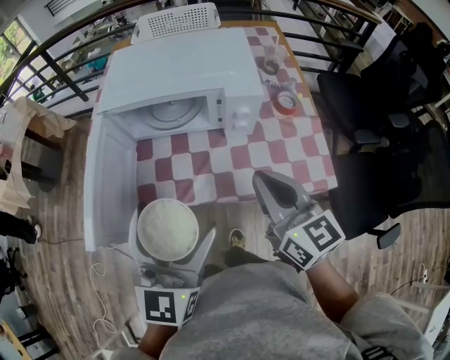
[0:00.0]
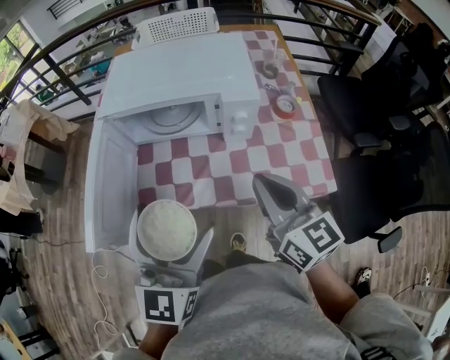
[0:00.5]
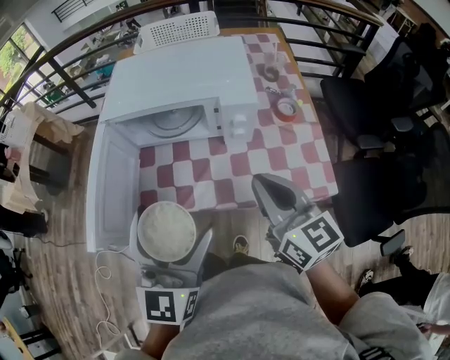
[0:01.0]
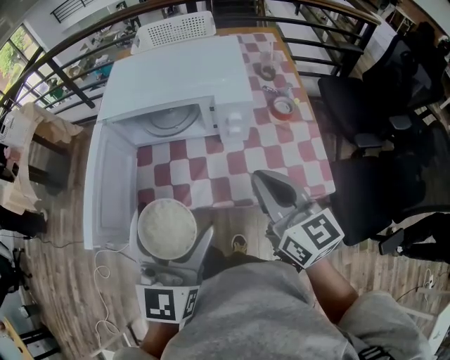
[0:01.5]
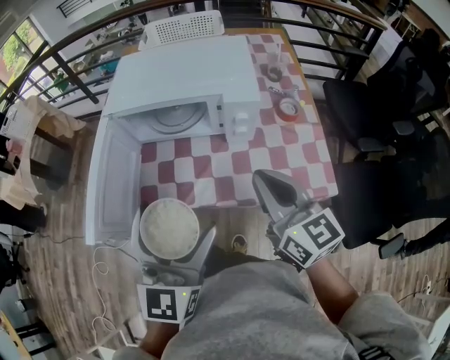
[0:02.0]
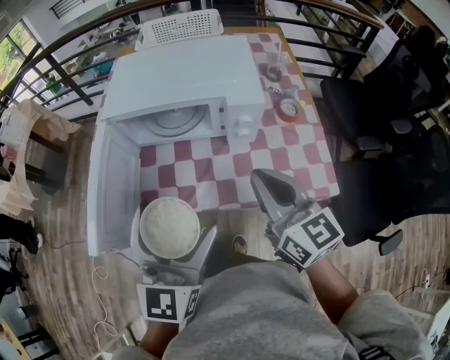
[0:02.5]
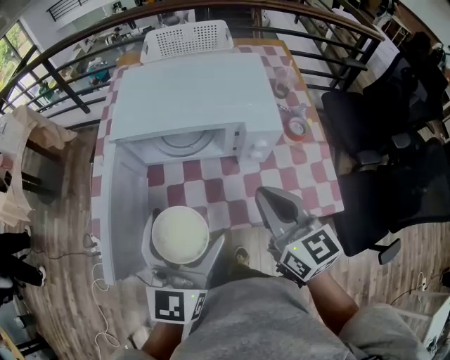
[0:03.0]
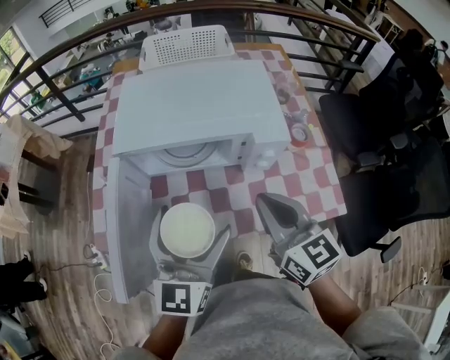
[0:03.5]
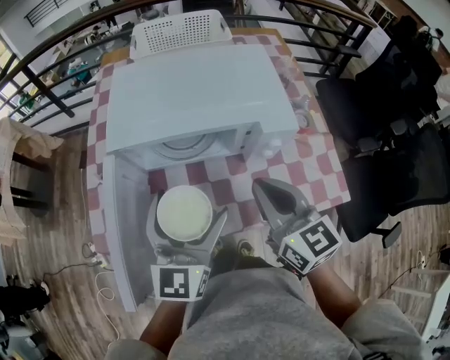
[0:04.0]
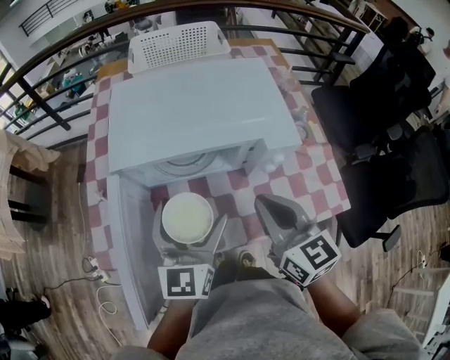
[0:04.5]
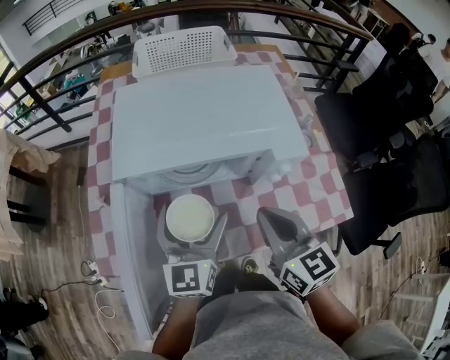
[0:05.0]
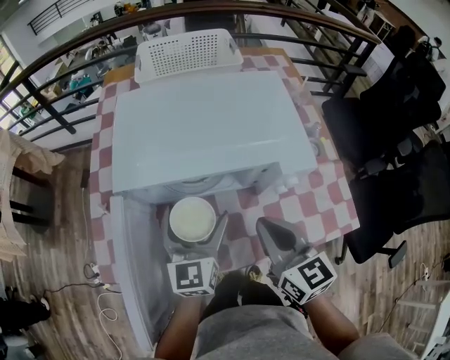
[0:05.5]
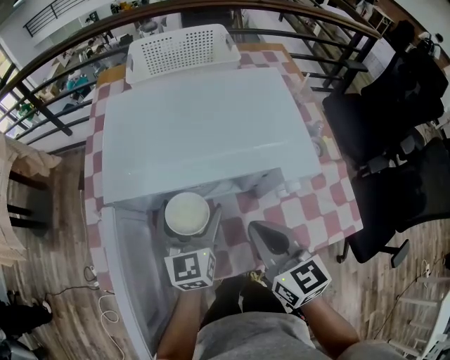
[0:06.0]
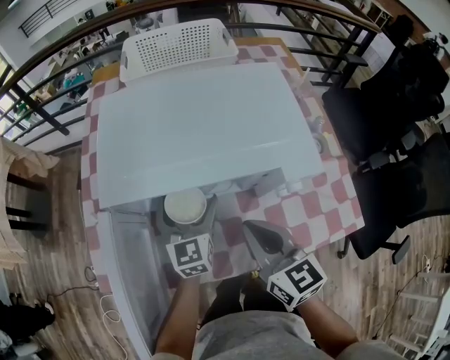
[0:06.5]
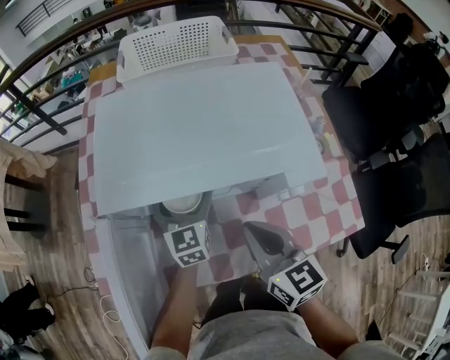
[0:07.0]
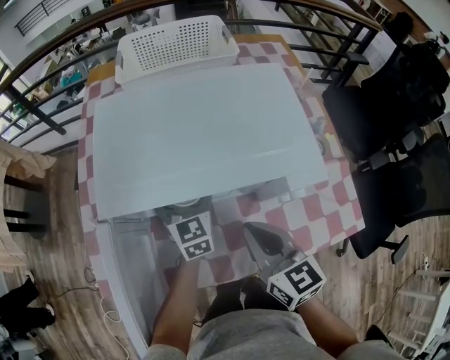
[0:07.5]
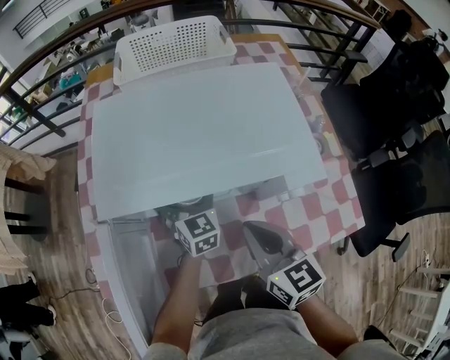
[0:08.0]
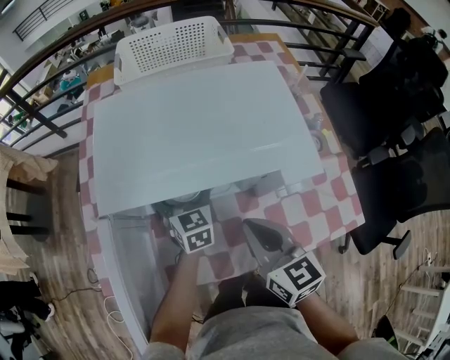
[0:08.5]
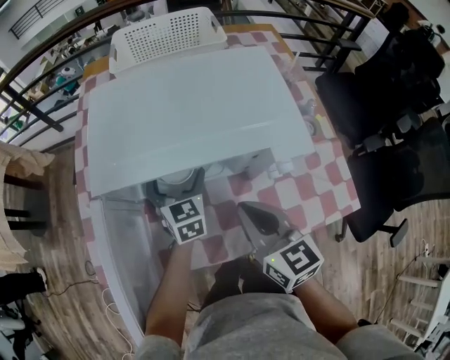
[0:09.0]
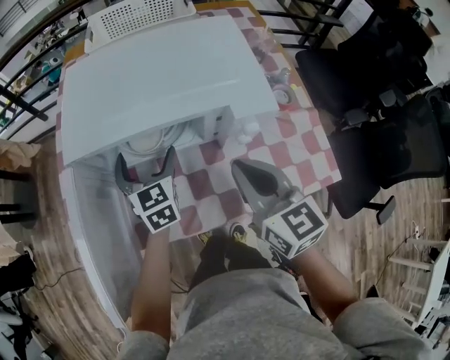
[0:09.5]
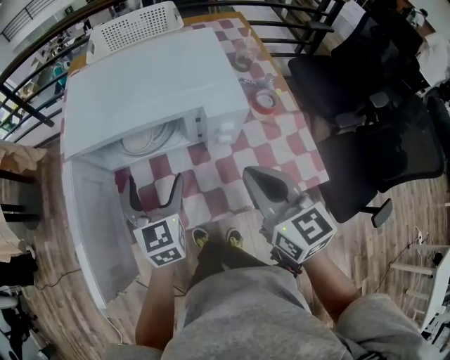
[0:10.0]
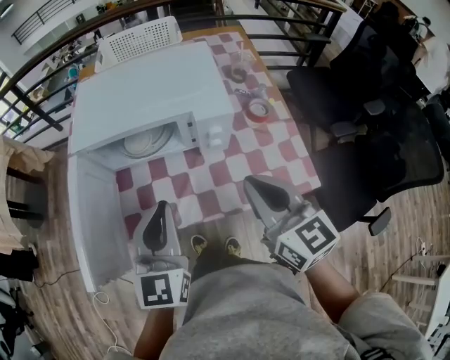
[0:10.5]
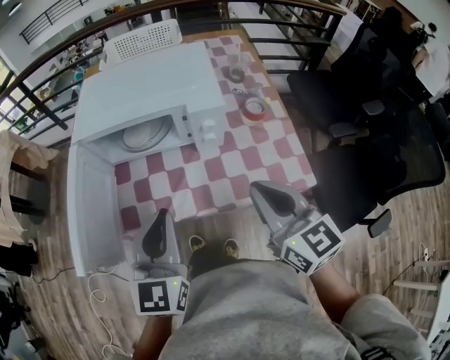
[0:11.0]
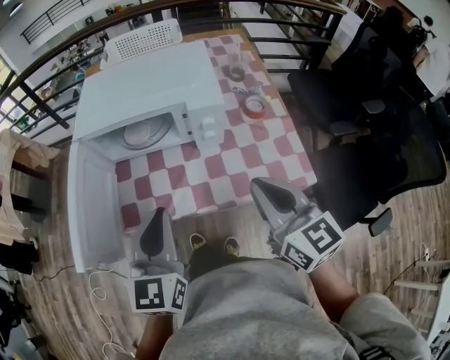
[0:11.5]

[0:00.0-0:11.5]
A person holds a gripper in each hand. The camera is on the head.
0:00.0 to 0:02.0: The grippers make only small movements.
0:02.0 to 0:04.0: The left gripper travels forward by roughly 15 cm, while the right gripper goes approximately 15 cm forward and to the left.
0:04.0 to 0:06.0: The left gripper heads forward and downward, covering approximately 20 cm; the right gripper moves downward, roughly 5 cm.
0:06.0 to 0:07.5: The left gripper goes about 10 cm forward and downward.
0:07.5 to 0:09.5: The right gripper is displaced to the right by roughly 5 cm, while the left gripper heads backward, covering roughly 5 cm.
0:09.5 to 0:11.5: The left gripper goes roughly 30 cm backward and upward, and closes its fingers, while the right gripper heads backward, to the right and upward, covering some 20 cm.

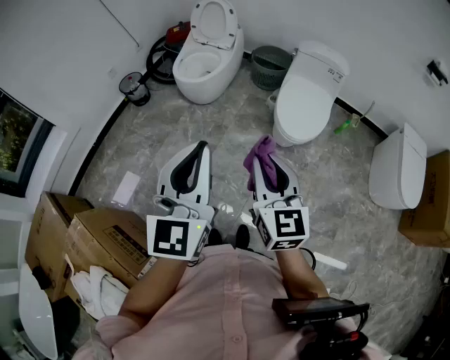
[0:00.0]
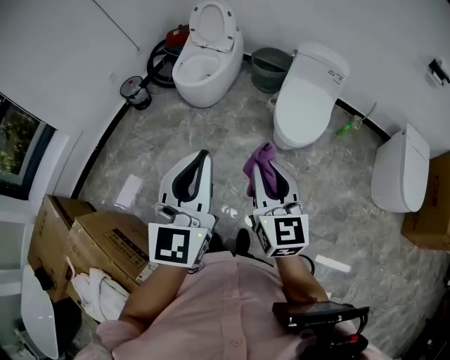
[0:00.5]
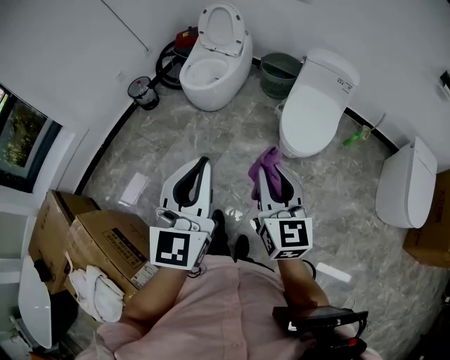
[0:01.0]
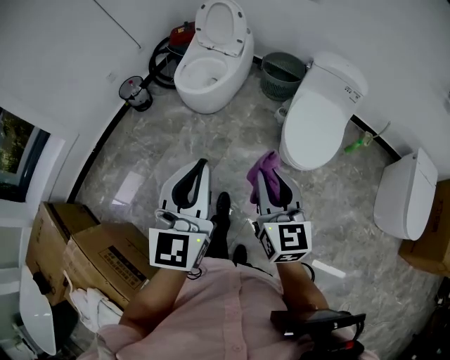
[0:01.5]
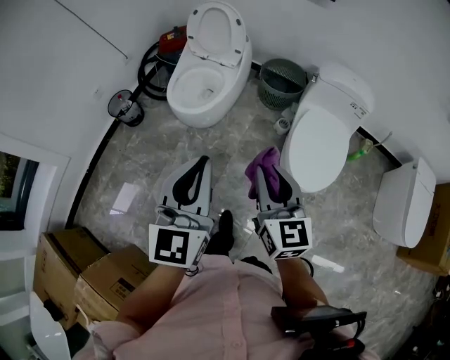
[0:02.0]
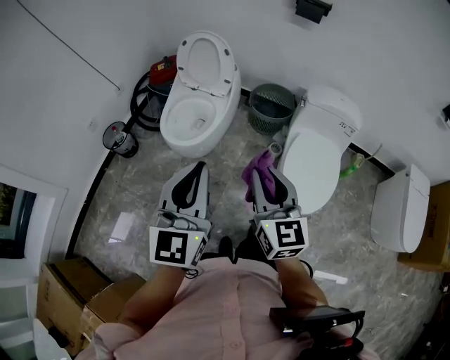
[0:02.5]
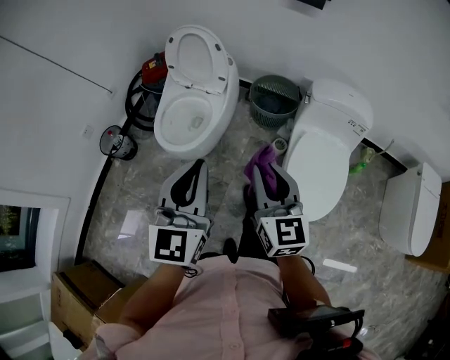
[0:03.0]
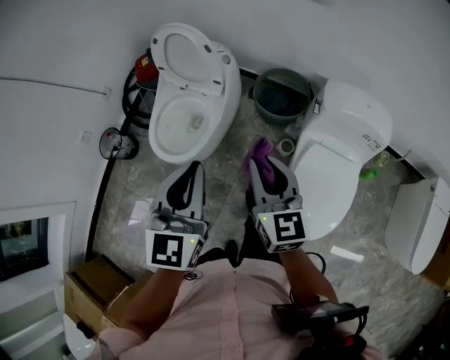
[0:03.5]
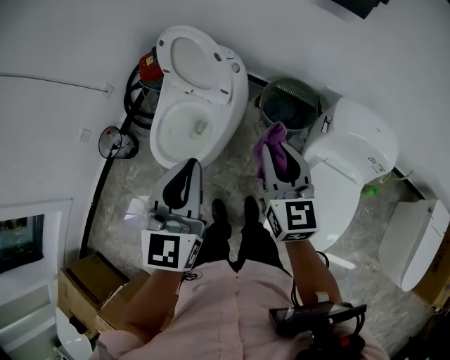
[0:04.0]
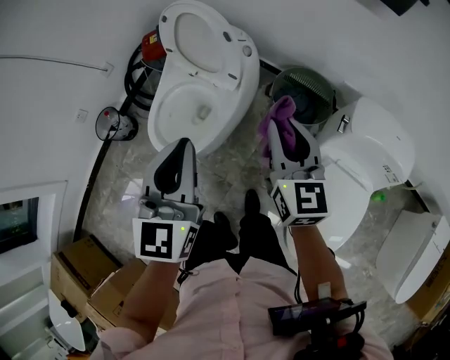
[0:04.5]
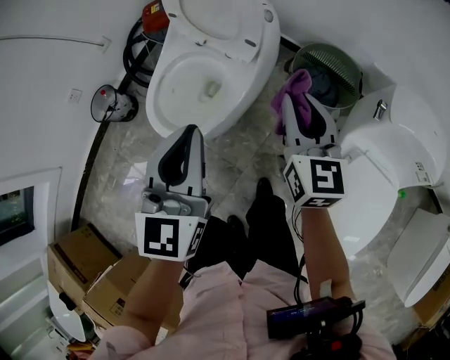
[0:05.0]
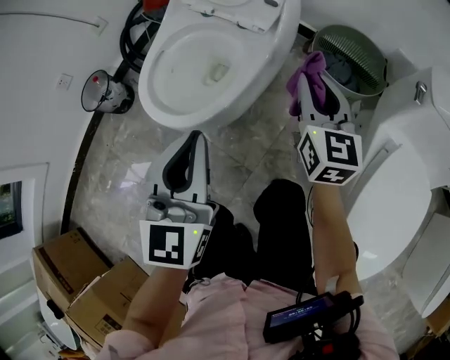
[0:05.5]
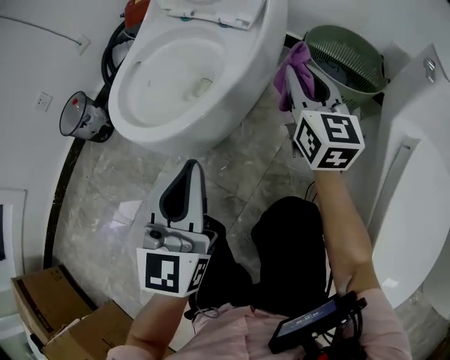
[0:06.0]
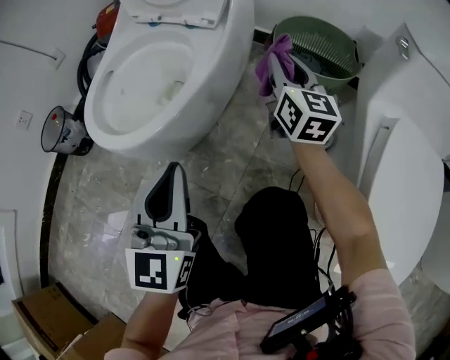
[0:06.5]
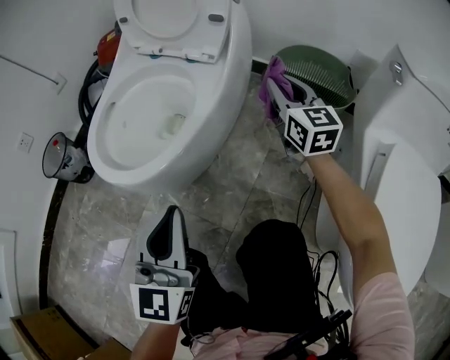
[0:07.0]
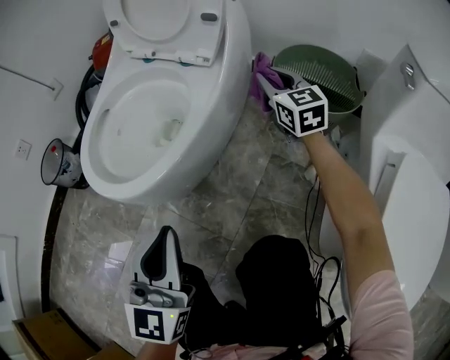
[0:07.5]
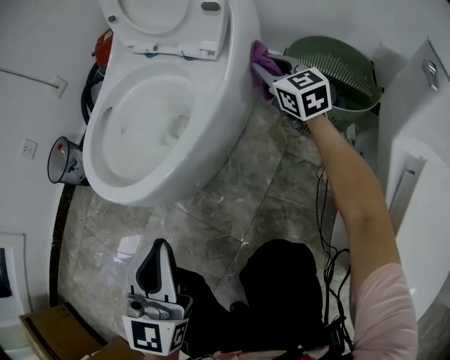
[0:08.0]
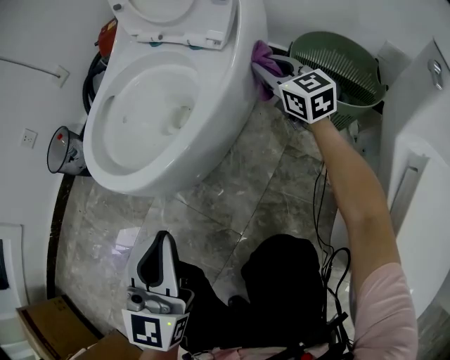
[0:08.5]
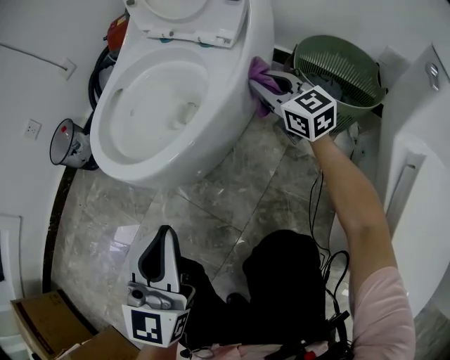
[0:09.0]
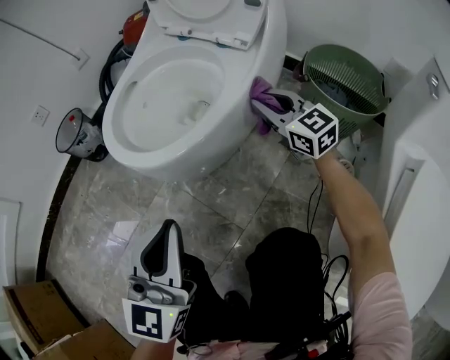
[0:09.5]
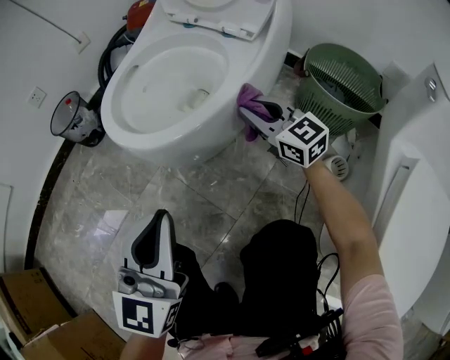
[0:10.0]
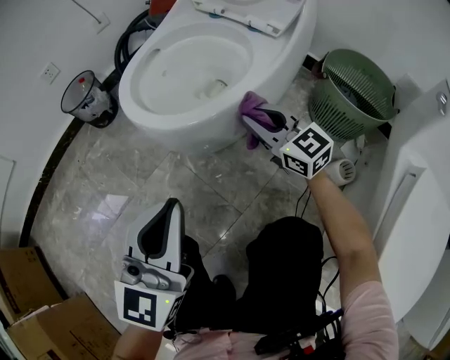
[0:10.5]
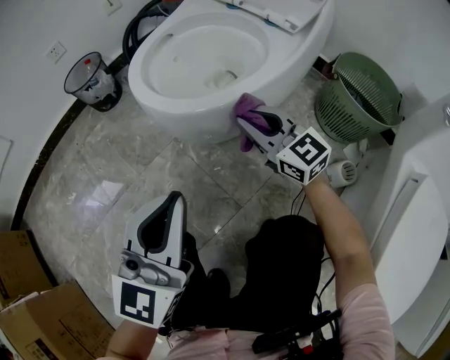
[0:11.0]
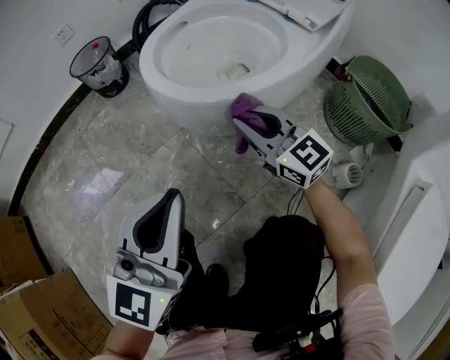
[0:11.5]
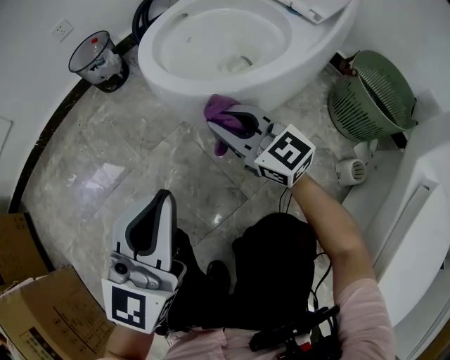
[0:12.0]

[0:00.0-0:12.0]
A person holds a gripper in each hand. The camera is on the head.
0:00.0 to 0:02.0: Both grippers move forward, roughly 35 cm.
0:02.0 to 0:04.0: The two grippers travel together, forward, about 40 cm.
0:04.0 to 0:06.0: The grippers both shift downward by approximately 40 cm.
0:06.0 to 0:08.0: The right gripper shifts roughly 20 cm forward and downward.
0:08.0 to 0:10.0: The left gripper ends up some 5 cm from where it was. Meanwhile the right gripper is displaced to the left and backward by approximately 20 cm, and rotates roughly 20 degrees.
0:10.0 to 0:12.0: The right gripper travels to the left by about 20 cm, and changes its angle by approximately 20 degrees; the left gripper moves to the left, approximately 5 cm.

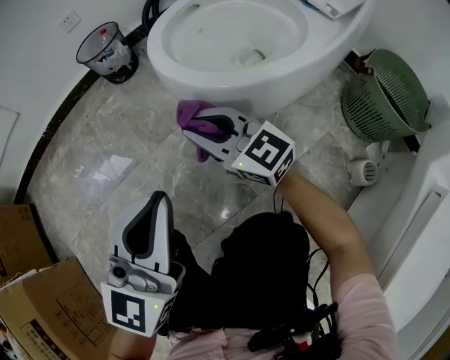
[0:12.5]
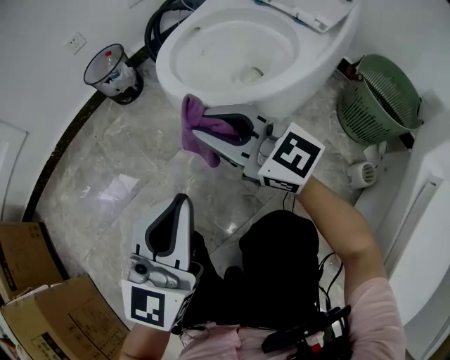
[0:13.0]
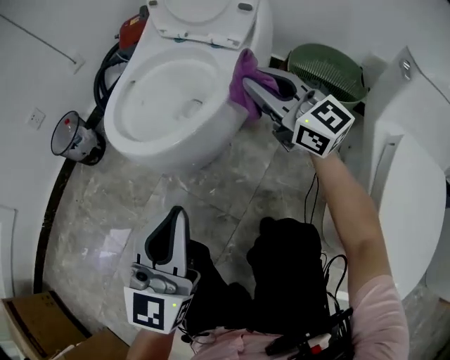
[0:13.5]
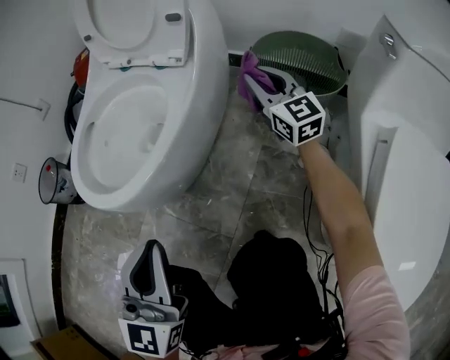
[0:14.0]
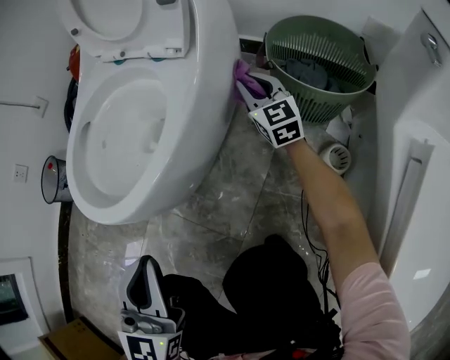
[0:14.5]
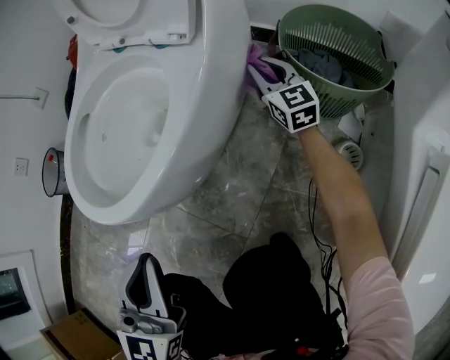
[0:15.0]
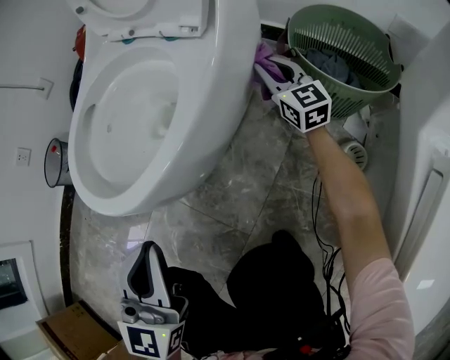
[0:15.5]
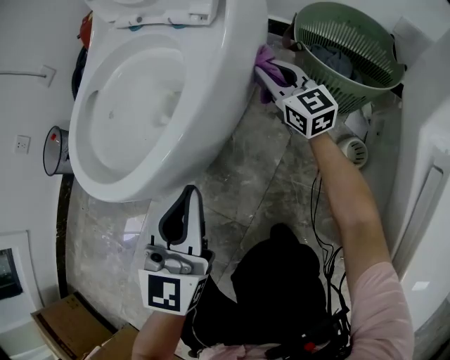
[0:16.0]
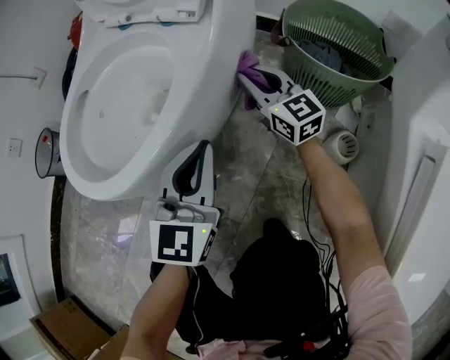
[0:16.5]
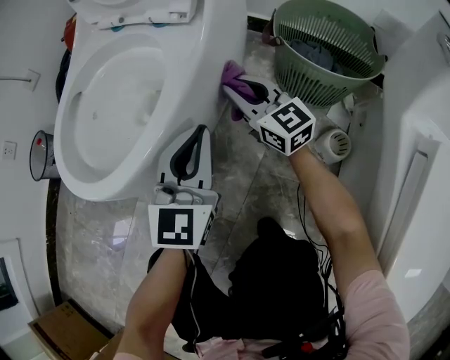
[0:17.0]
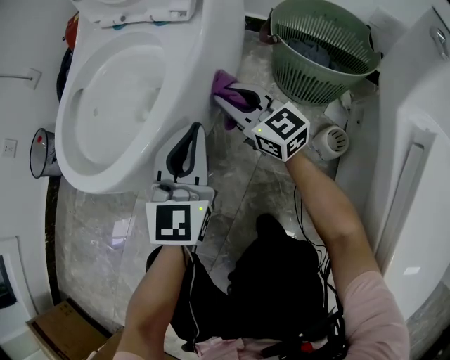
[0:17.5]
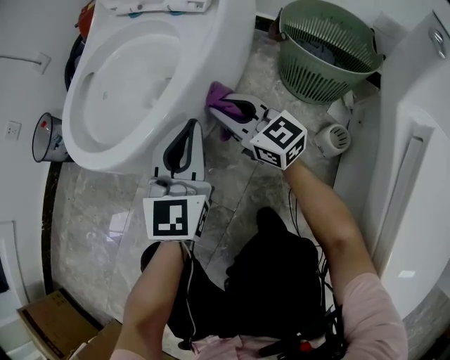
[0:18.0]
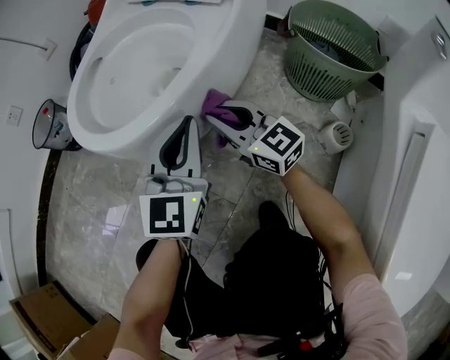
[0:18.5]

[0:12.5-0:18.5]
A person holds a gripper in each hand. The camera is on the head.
0:12.5 to 0:14.5: The right gripper goes upward and returns, roughly 15 cm each way, and turns by some 60 degrees. Meanwhile the left gripper changes place by roughly 15 cm.
0:14.5 to 0:16.5: The left gripper moves forward, downward and to the right, about 20 cm, while the right gripper ends up roughly 5 cm from where it was.
0:16.5 to 0:18.5: The left gripper is displaced to the left by about 5 cm, while the right gripper goes approximately 20 cm to the left and backward, and swivels approximately 20 degrees.
